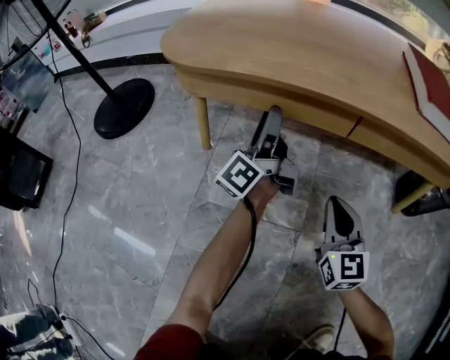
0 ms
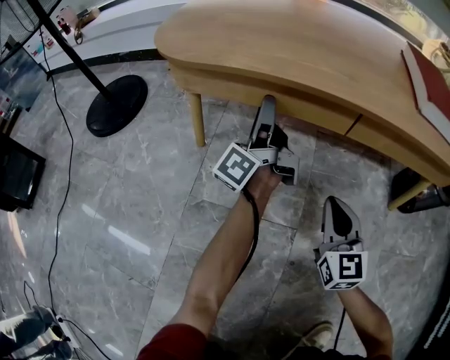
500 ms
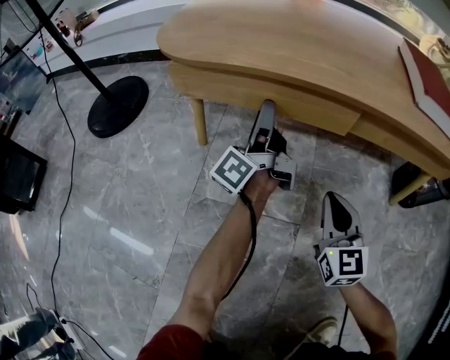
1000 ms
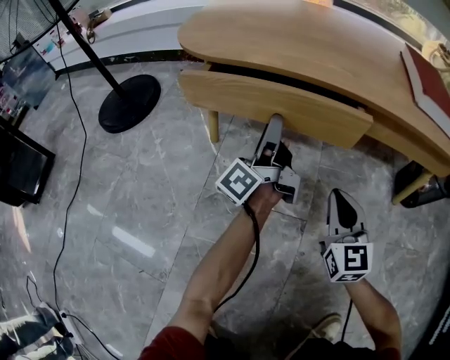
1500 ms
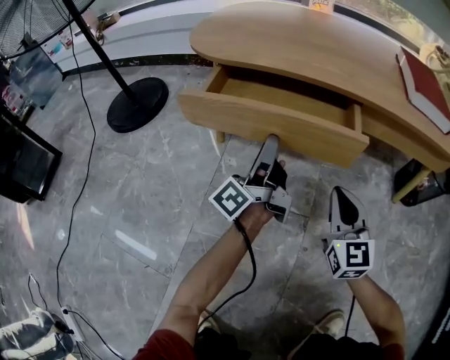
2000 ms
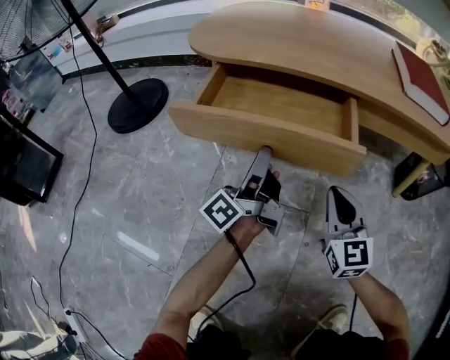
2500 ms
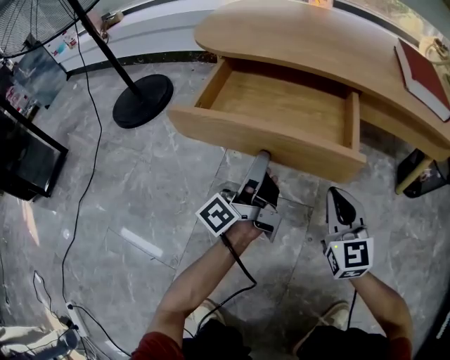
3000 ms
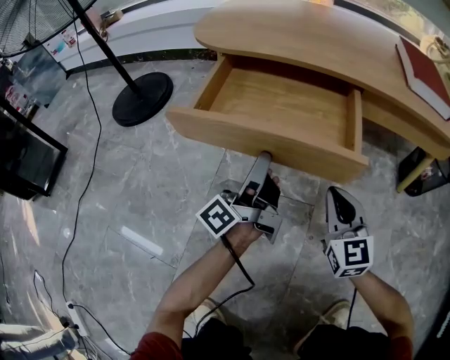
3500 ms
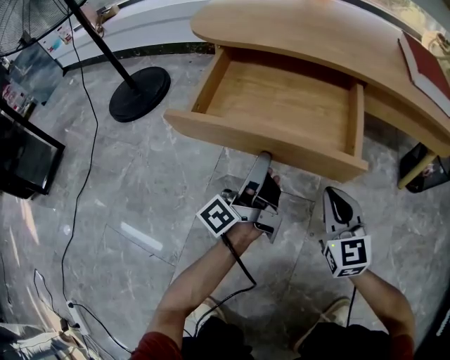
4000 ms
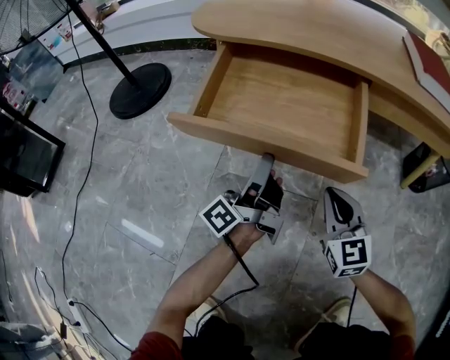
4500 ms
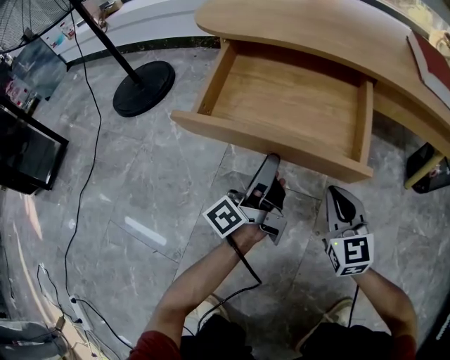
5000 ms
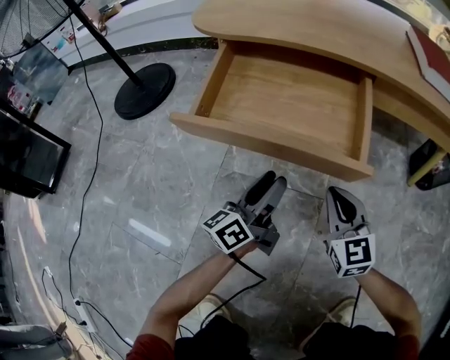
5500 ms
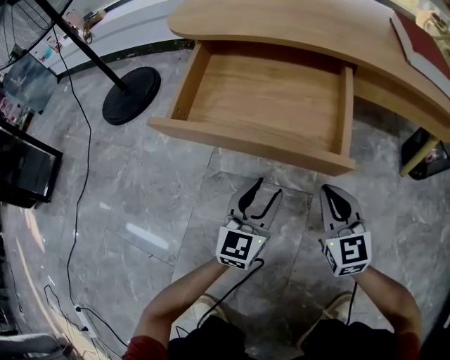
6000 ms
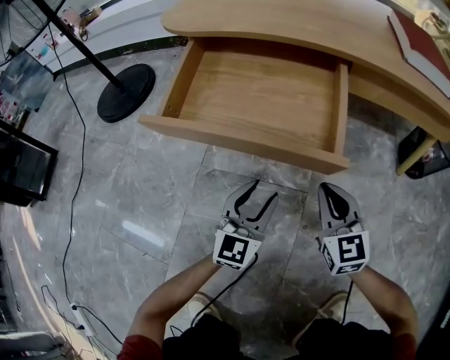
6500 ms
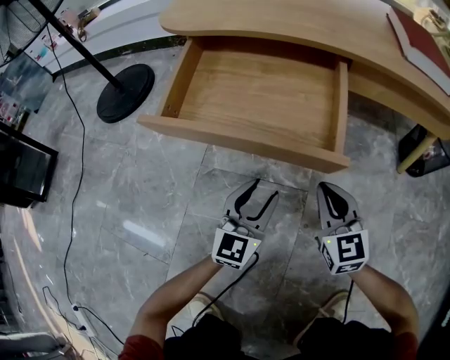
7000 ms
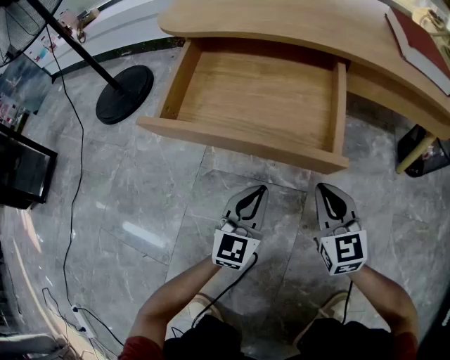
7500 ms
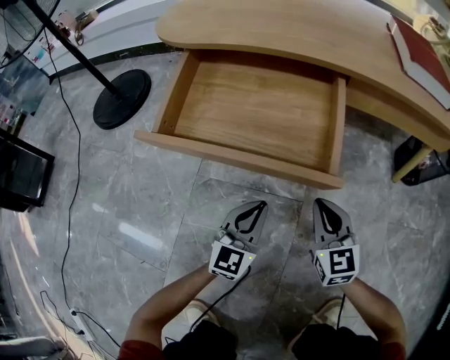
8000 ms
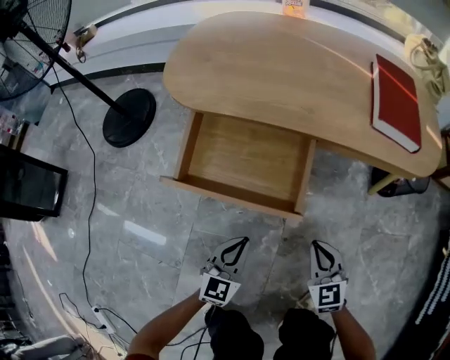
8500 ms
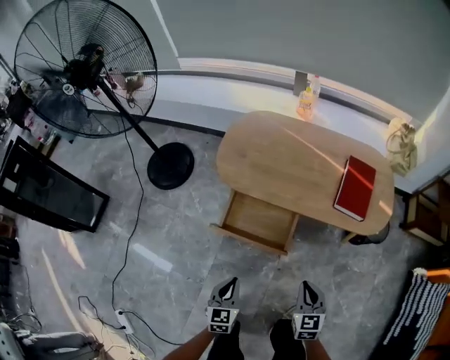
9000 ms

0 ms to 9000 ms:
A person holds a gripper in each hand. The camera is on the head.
0 ms to 2000 ms: The left gripper moves backward, about 10 cm; the right gripper heads backward, covering roughly 5 cm.
2000 ms to 4500 ms: The left gripper travels backward by approximately 5 cm. Meanwhile the right gripper changes place by approximately 5 cm.
4500 ms to 7000 ms: The left gripper shifts roughly 10 cm downward, to the right and backward, and rolls clockwise, seen from behind, by some 80 degrees.
7000 ms to 9000 ms: The two grippers go approximately 40 cm upward. The right gripper turns by about 20 degrees. The left gripper swivels approximately 30 degrees, and closes its fingers.

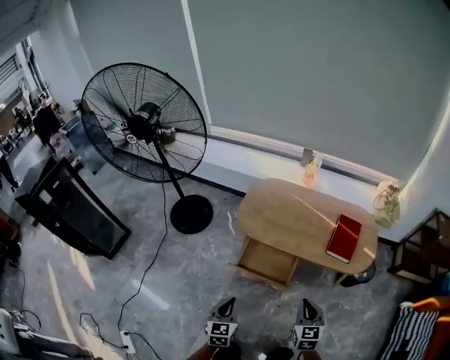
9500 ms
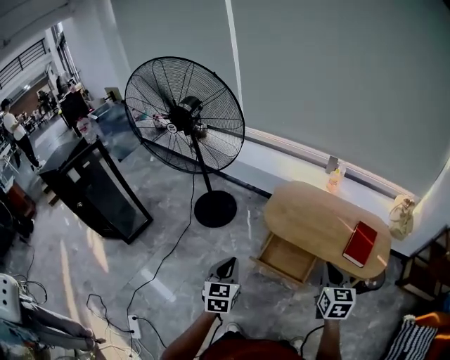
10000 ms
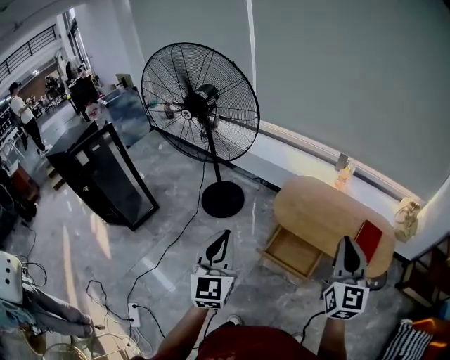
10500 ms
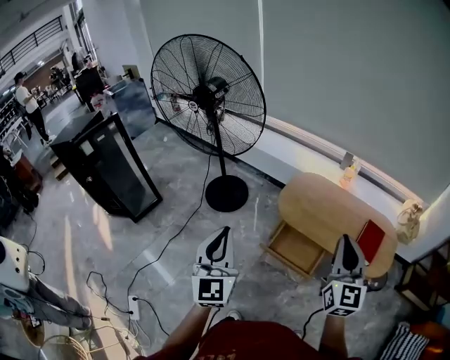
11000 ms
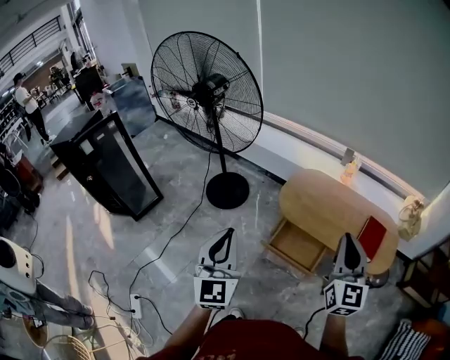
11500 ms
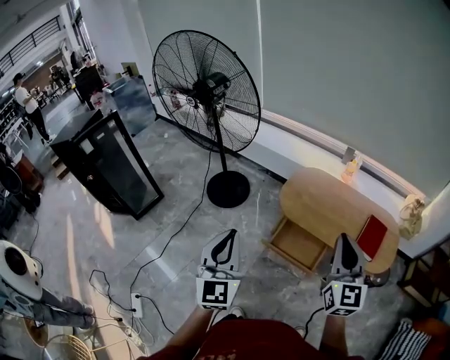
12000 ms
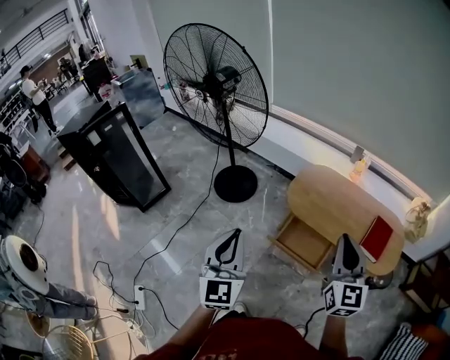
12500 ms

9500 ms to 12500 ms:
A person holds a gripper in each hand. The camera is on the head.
9500 ms to 11000 ms: The right gripper is displaced upward by roughly 30 cm, and tilts its fingers some 30 degrees upward. Meanwhile the left gripper moves upward and to the left, approximately 35 cm, and tilts its fingers approximately 30 degrees upward.
11000 ms to 12500 ms: The grippers make only small movements.

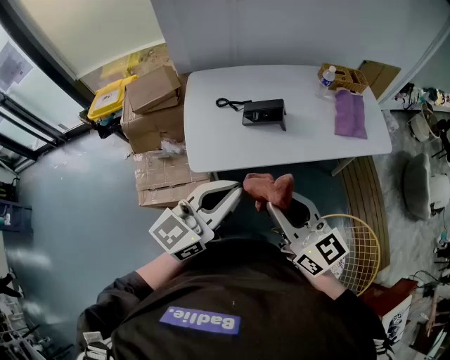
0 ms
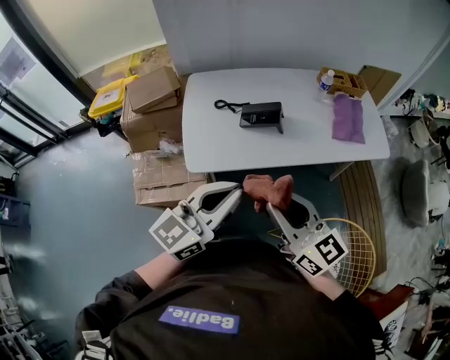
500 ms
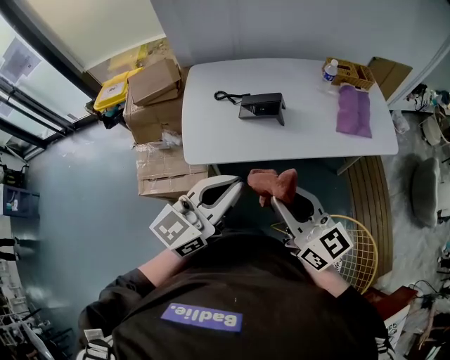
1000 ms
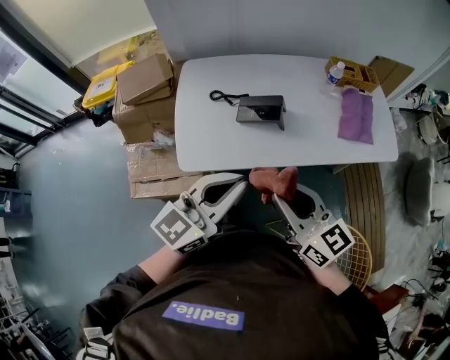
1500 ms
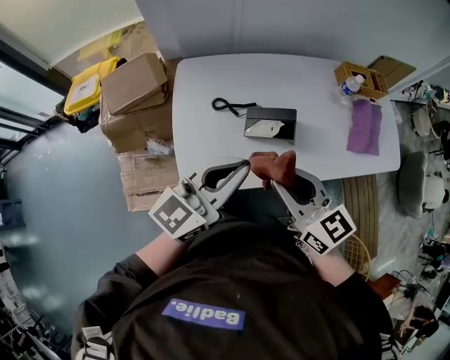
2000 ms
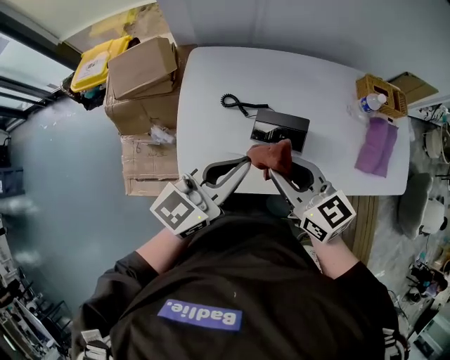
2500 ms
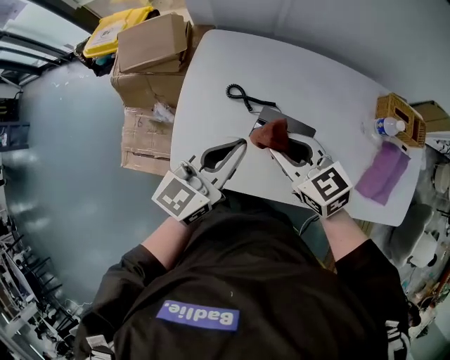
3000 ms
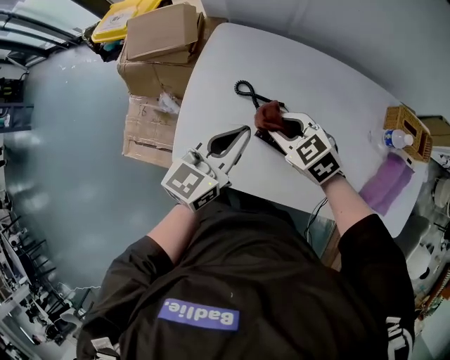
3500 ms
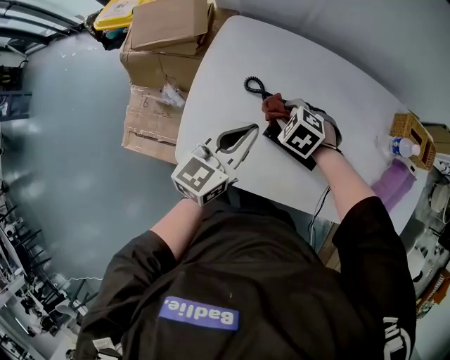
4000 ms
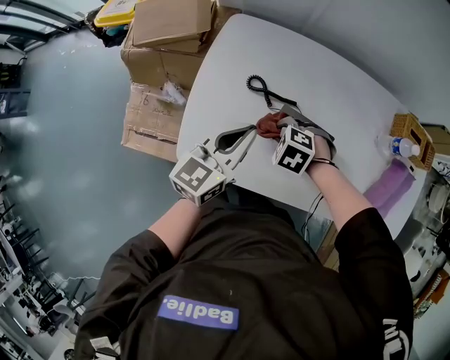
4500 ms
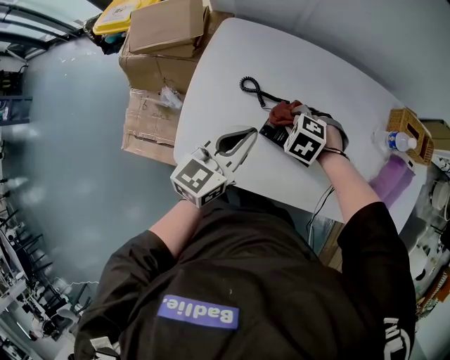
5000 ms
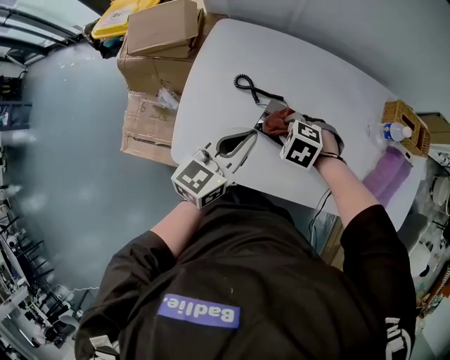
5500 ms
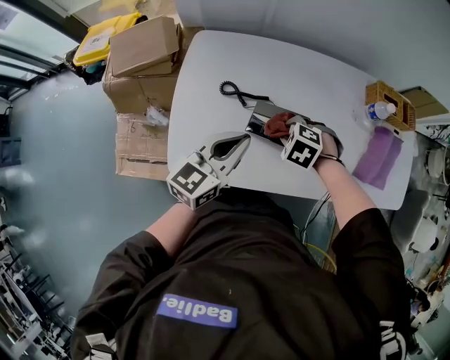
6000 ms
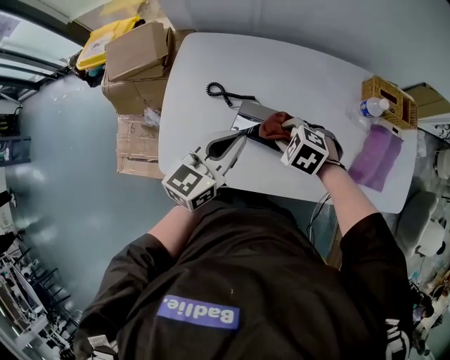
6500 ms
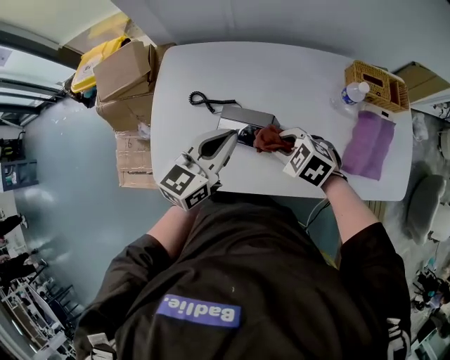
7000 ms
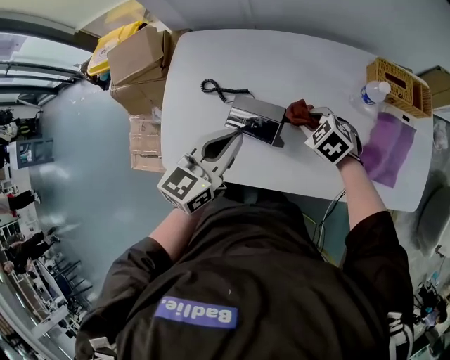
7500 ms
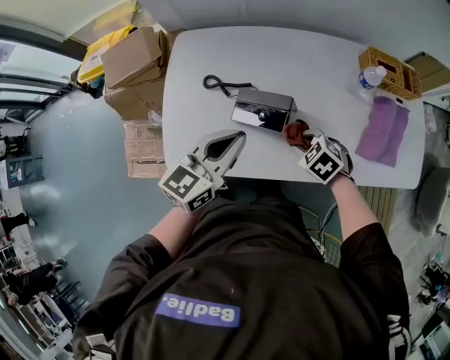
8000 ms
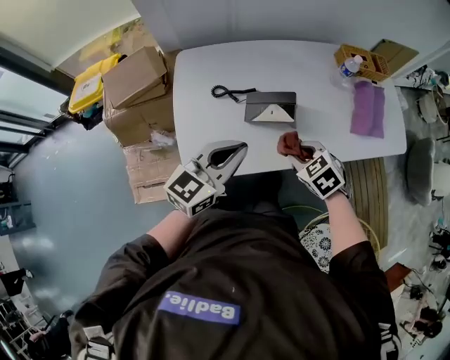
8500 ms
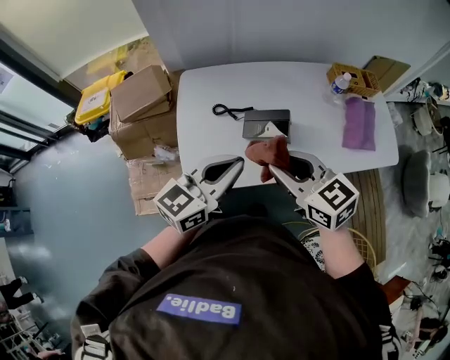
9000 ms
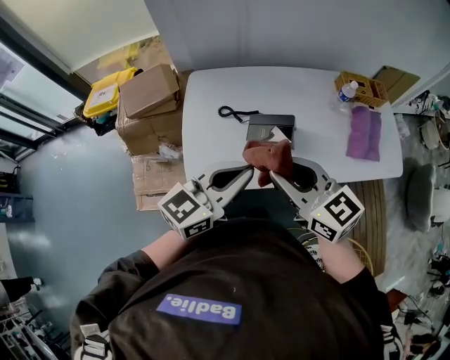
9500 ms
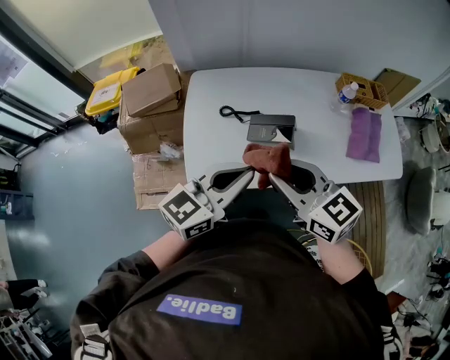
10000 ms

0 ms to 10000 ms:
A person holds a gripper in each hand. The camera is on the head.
0 ms to 2000 ms: The grippers both shift forward by about 20 cm.
2000 ms to 4000 ms: The left gripper moves downward, some 15 cm, and swivels roughly 30 degrees; the right gripper moves downward, about 25 cm, and points its fingers about 60 degrees further downward.
4000 ms to 6000 ms: The left gripper moves about 5 cm, while the right gripper shifts by about 10 cm.
6000 ms to 8000 ms: The right gripper shifts by approximately 10 cm, and turns by roughly 20 degrees, while the left gripper changes place by roughly 5 cm.
8000 ms to 10000 ms: The right gripper is displaced upward, to the left and backward by roughly 35 cm, and tilts its fingers approximately 50 degrees upward. The left gripper travels upward, backward and to the left by roughly 20 cm.

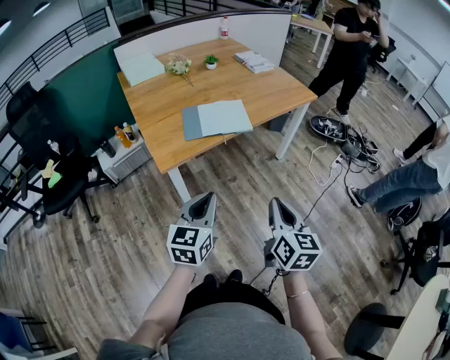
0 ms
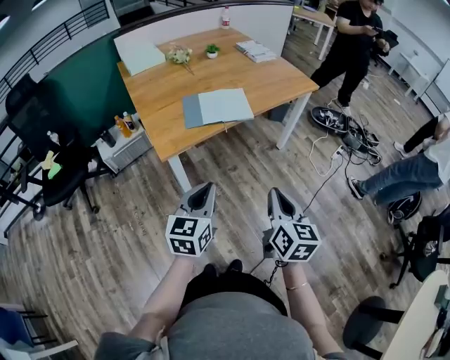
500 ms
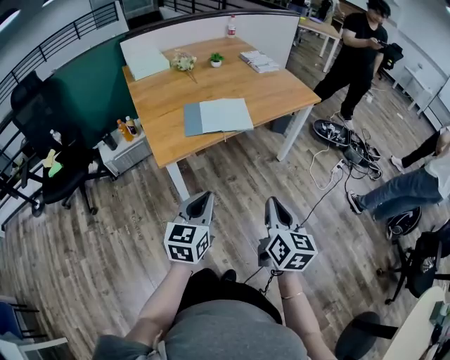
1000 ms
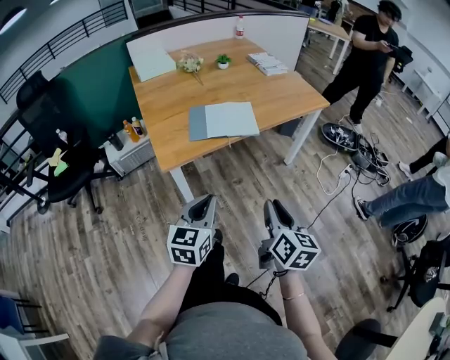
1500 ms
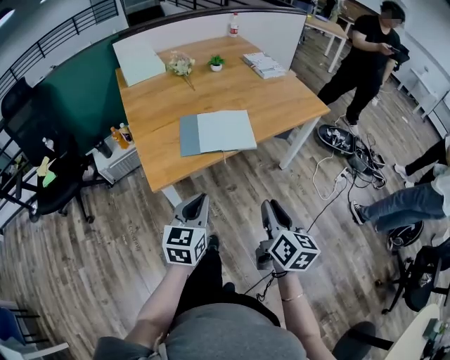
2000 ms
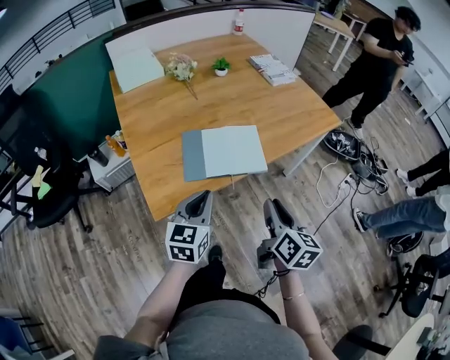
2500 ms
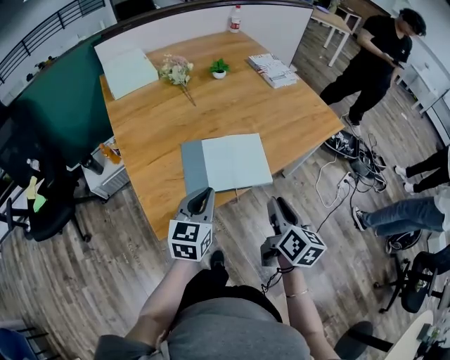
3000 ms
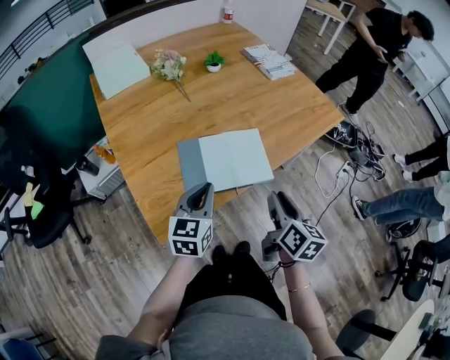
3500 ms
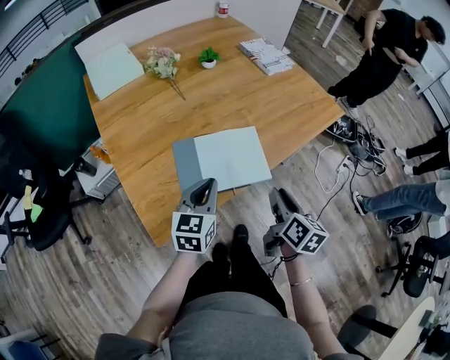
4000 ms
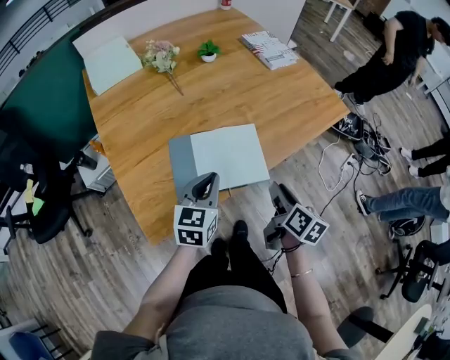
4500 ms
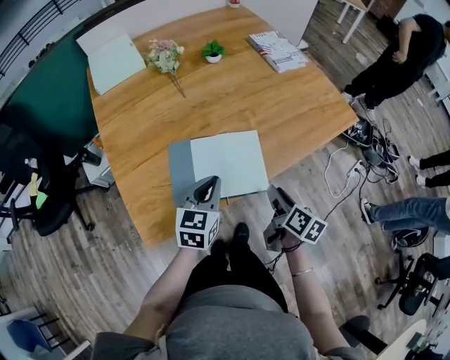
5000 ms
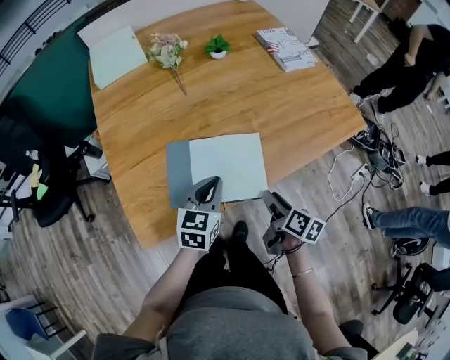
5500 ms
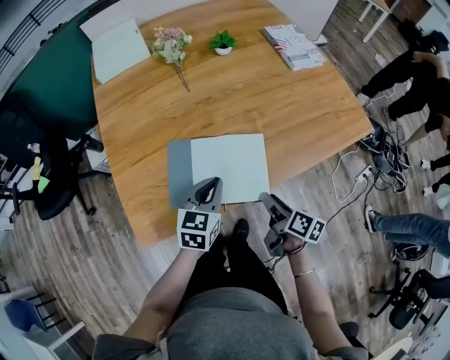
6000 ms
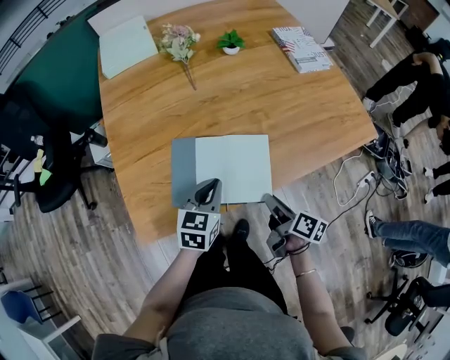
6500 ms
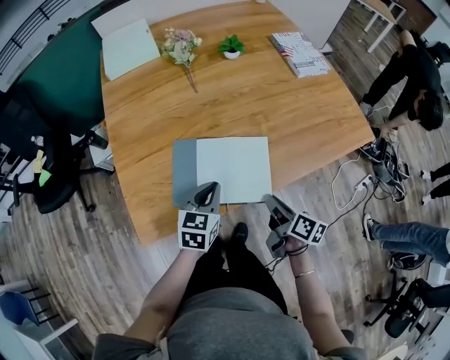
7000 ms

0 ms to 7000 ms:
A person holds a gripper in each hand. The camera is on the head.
0 ms to 2000 ms: Both grippers travel together forward, approximately 10 cm. The right gripper opens its fingers.
2000 ms to 3500 ms: Both grippers move forward, about 20 cm.
3500 ms to 5000 ms: The left gripper heads forward and to the right, covering some 10 cm. Meanwhile the right gripper shifts about 10 cm downward and forward.
5000 ms to 7000 ms: The right gripper closes.
